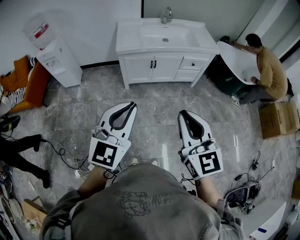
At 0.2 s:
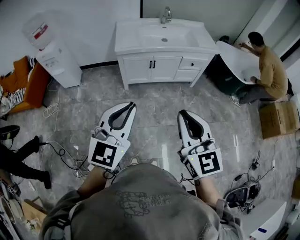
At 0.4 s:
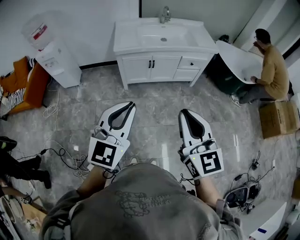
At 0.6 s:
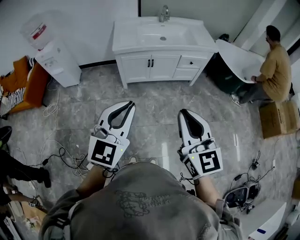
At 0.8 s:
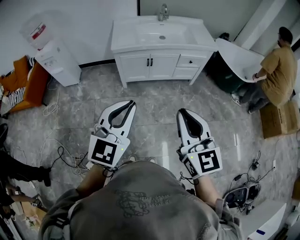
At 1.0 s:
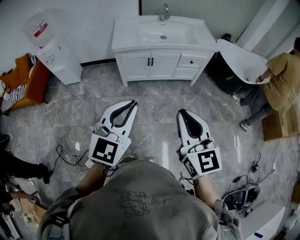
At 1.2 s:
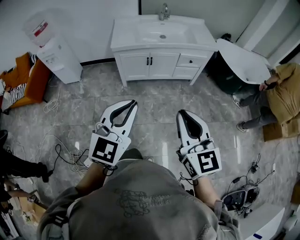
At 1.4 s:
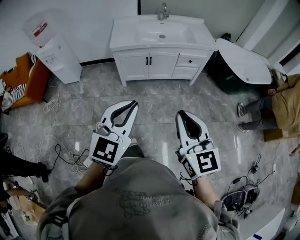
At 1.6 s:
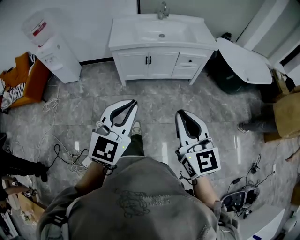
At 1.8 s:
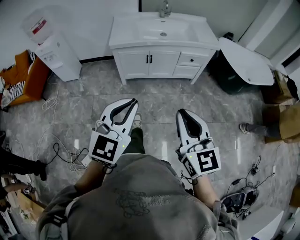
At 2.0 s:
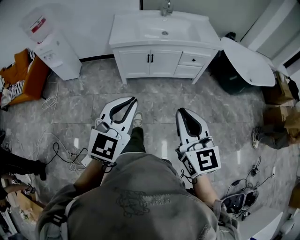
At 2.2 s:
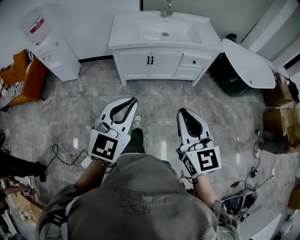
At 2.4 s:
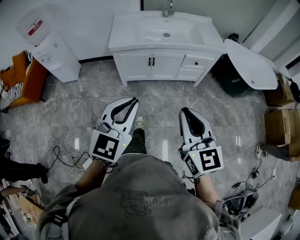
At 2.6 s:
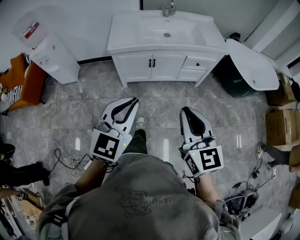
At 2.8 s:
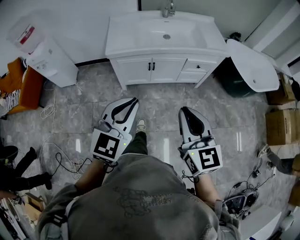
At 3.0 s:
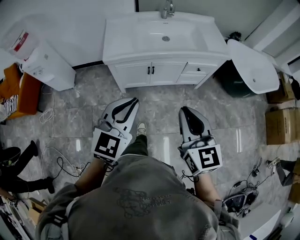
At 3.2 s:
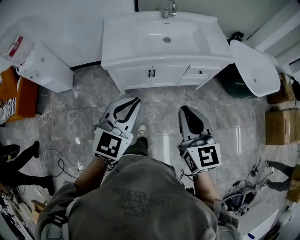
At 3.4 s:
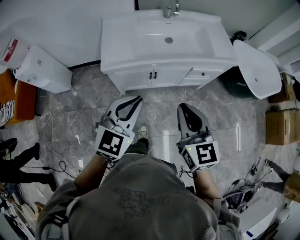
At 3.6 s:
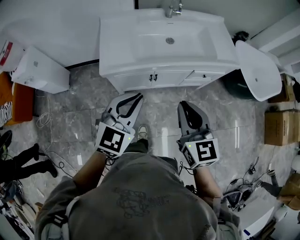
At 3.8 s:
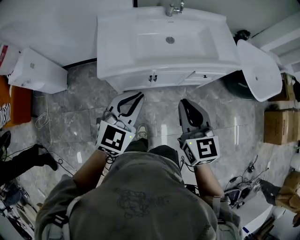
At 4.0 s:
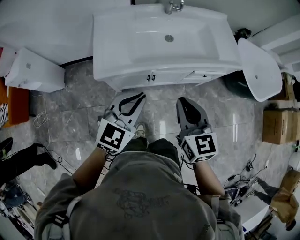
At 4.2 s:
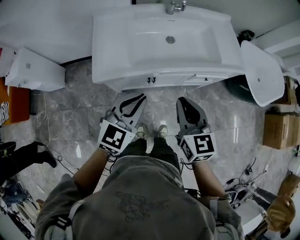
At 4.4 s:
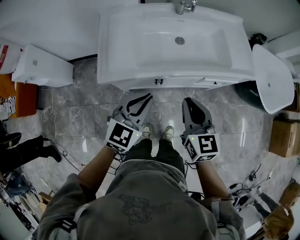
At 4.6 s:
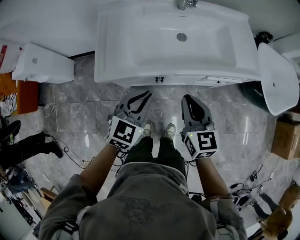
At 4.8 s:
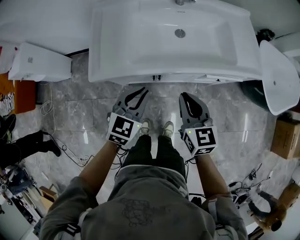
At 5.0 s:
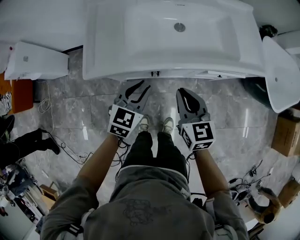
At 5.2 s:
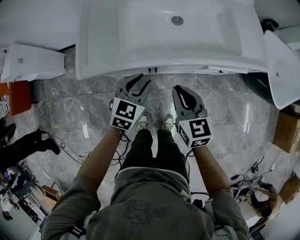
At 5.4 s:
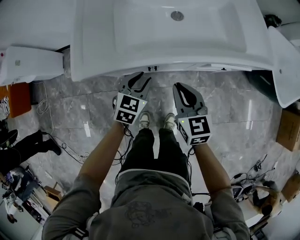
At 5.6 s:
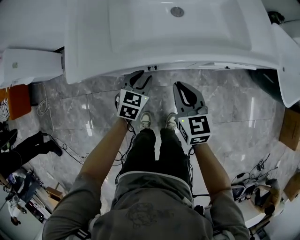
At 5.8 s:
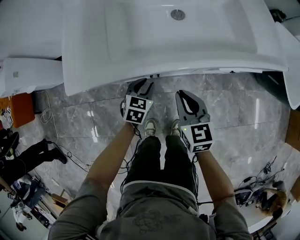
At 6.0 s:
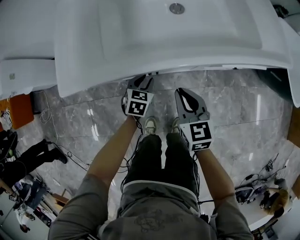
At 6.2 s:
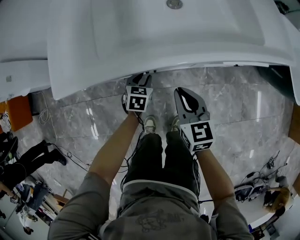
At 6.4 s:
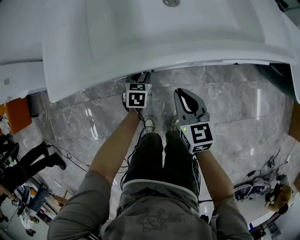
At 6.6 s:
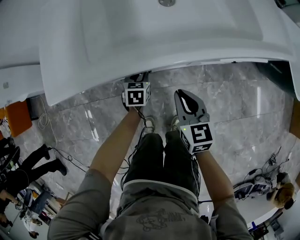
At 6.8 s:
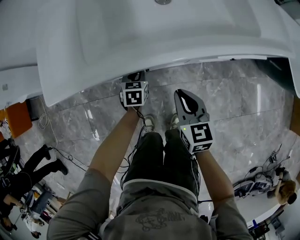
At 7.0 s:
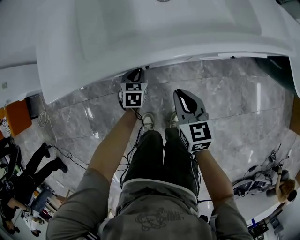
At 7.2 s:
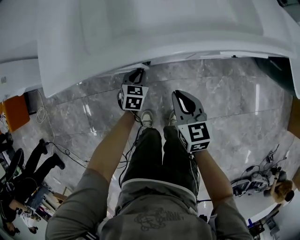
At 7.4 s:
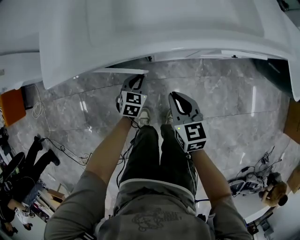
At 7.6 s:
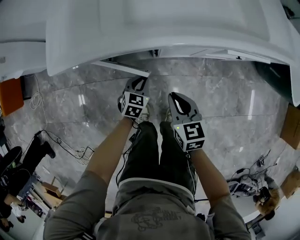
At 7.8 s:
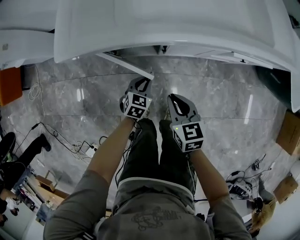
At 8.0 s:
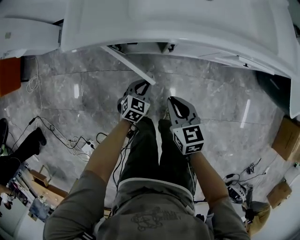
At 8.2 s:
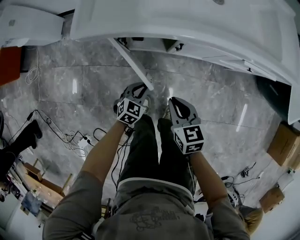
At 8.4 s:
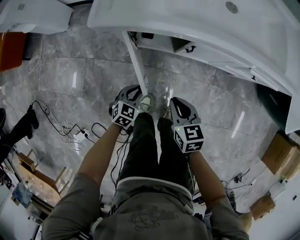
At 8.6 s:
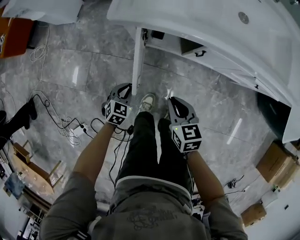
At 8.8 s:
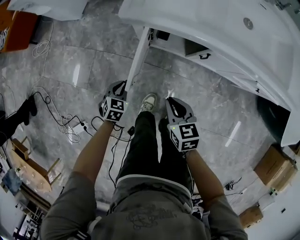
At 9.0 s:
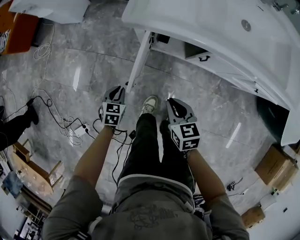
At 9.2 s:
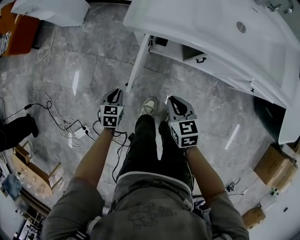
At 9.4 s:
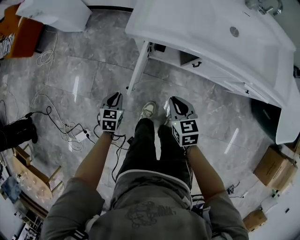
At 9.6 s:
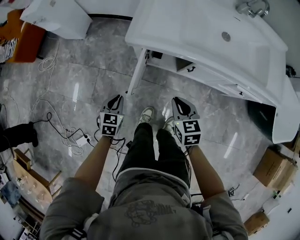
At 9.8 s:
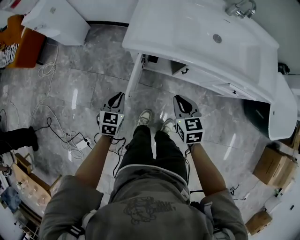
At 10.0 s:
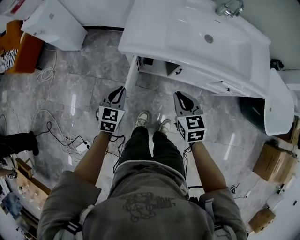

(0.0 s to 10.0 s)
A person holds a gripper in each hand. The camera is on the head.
0.0 s - 1.4 s: Both grippers move to the right, about 10 cm.
1.4 s - 2.8 s: The two grippers go roughly 20 cm forward.
2.8 s - 4.2 s: The two grippers go approximately 35 cm forward.
4.2 s - 5.8 s: Both grippers travel together downward, roughly 35 cm. The left gripper rotates roughly 30 degrees, and opens up.
5.8 s - 7.2 s: Both grippers travel together downward, about 10 cm.
7.2 s - 8.6 s: The right gripper moves to the left and backward, some 20 cm, and changes its angle by roughly 20 degrees, while the left gripper heads to the left and backward, covering about 30 cm.
8.6 s - 10.0 s: The two grippers go some 25 cm upward.

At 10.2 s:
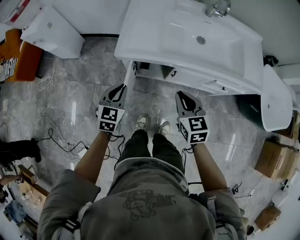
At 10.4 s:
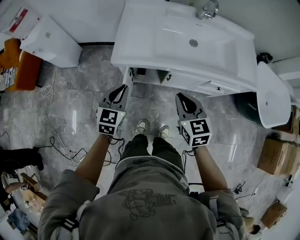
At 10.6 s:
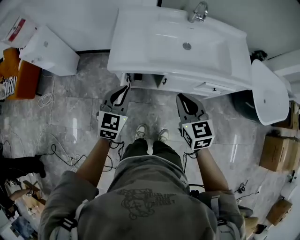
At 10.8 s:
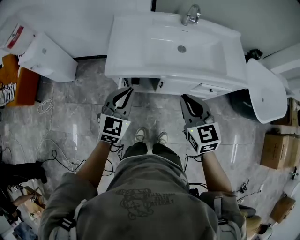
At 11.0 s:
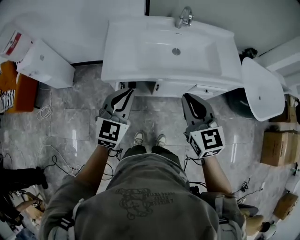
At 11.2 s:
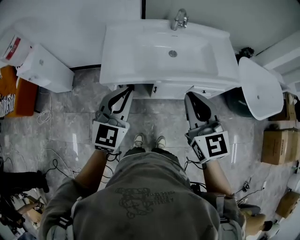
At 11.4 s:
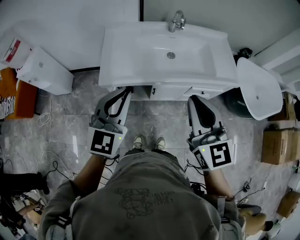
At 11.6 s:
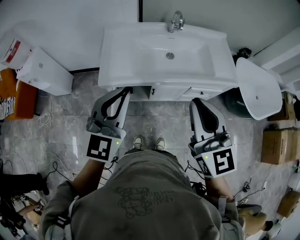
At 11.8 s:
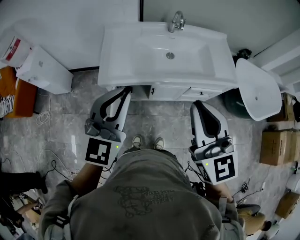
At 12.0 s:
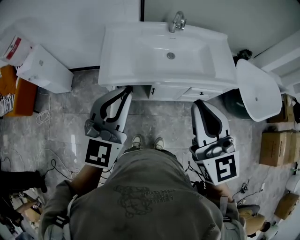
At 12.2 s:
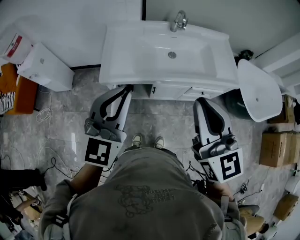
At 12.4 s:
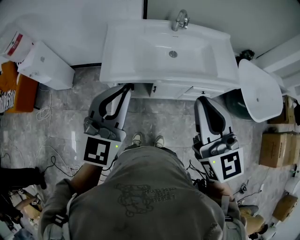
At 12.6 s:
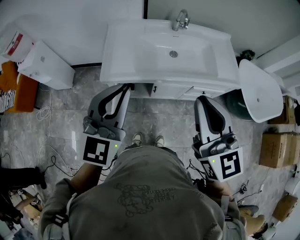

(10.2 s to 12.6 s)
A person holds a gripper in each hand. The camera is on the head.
10.2 s - 11.4 s: The left gripper shifts about 30 cm upward and to the right, and turns by about 30 degrees, while the right gripper moves upward, approximately 25 cm, and rotates some 30 degrees.
11.4 s - 12.6 s: The left gripper is displaced upward by roughly 5 cm. The right gripper moves roughly 5 cm.

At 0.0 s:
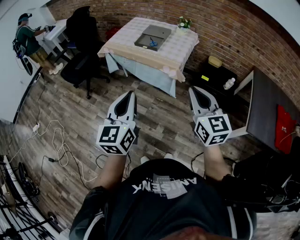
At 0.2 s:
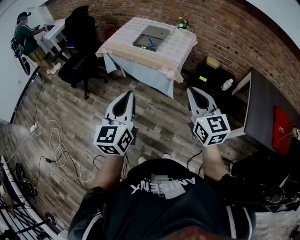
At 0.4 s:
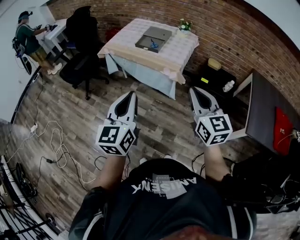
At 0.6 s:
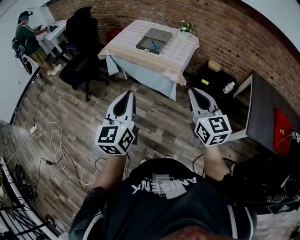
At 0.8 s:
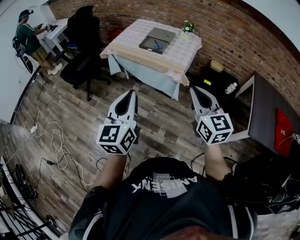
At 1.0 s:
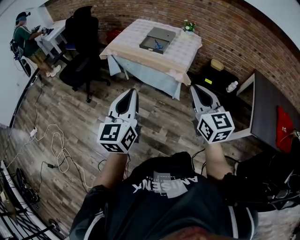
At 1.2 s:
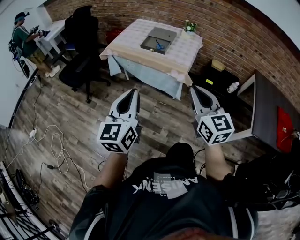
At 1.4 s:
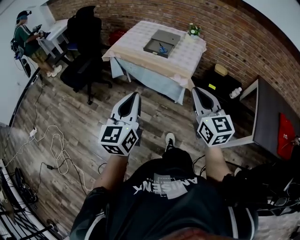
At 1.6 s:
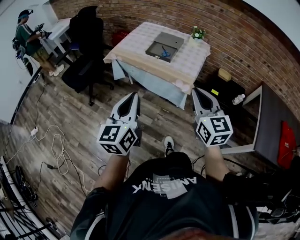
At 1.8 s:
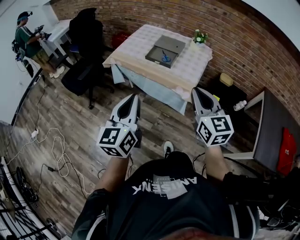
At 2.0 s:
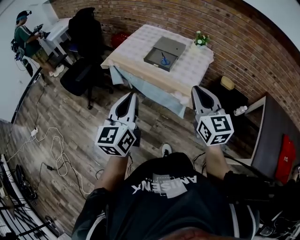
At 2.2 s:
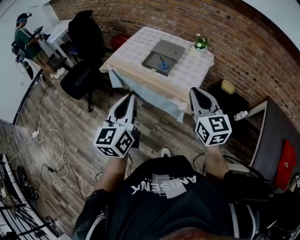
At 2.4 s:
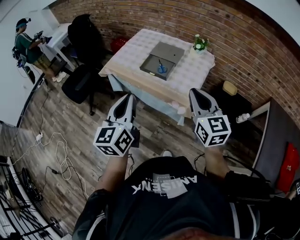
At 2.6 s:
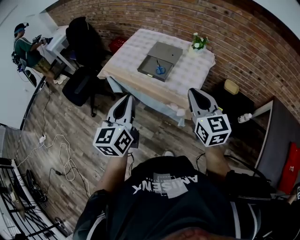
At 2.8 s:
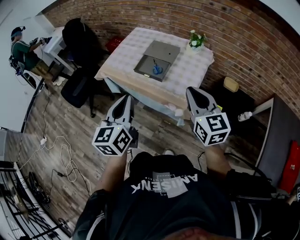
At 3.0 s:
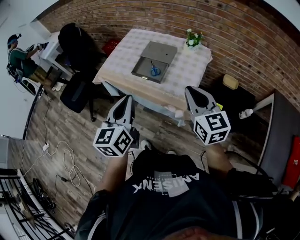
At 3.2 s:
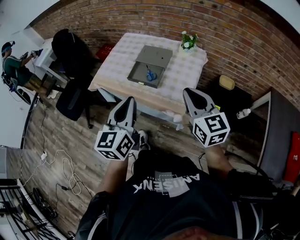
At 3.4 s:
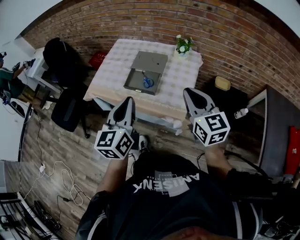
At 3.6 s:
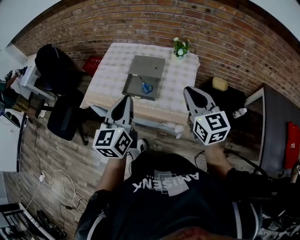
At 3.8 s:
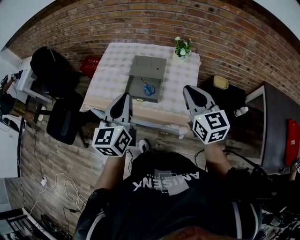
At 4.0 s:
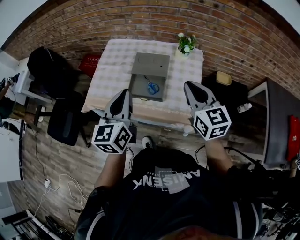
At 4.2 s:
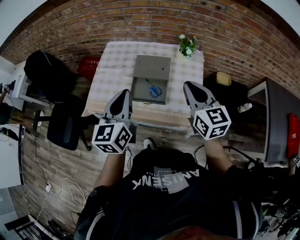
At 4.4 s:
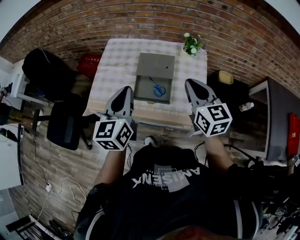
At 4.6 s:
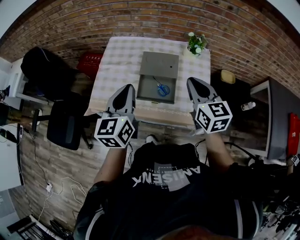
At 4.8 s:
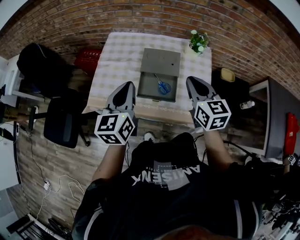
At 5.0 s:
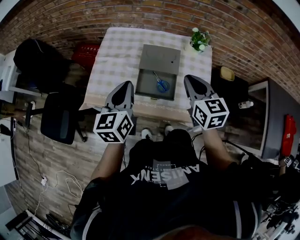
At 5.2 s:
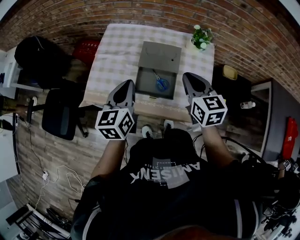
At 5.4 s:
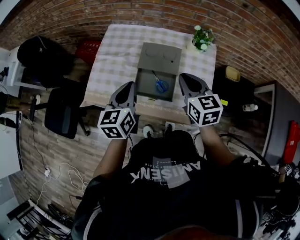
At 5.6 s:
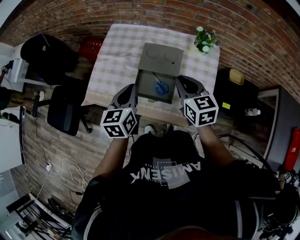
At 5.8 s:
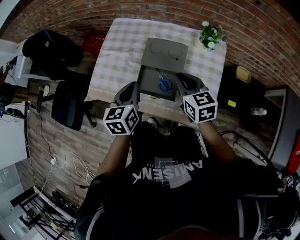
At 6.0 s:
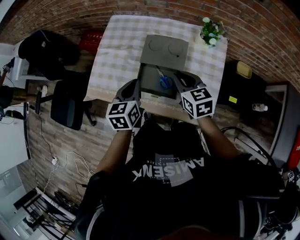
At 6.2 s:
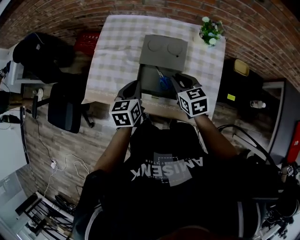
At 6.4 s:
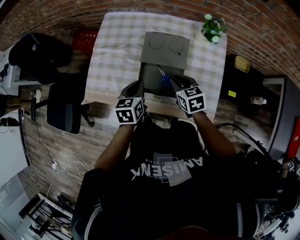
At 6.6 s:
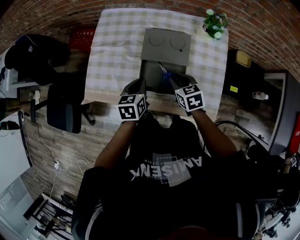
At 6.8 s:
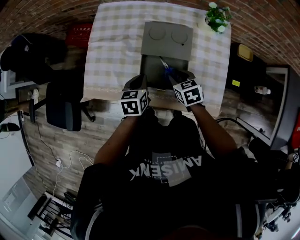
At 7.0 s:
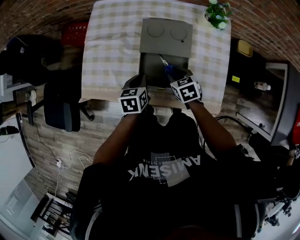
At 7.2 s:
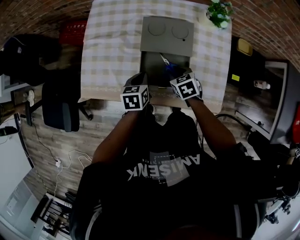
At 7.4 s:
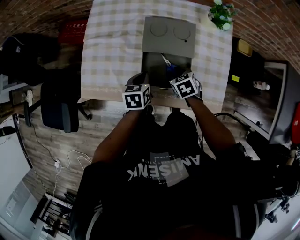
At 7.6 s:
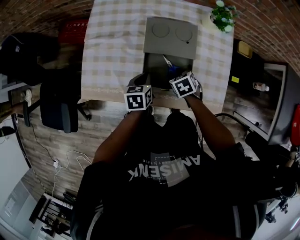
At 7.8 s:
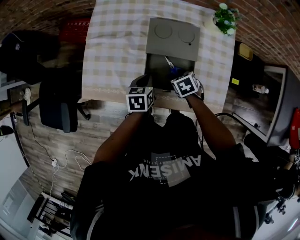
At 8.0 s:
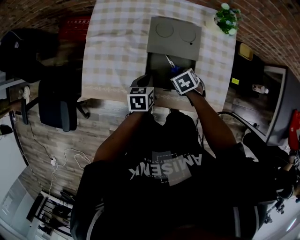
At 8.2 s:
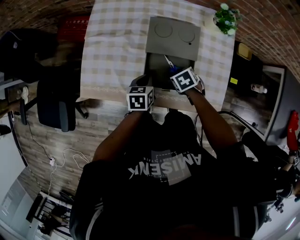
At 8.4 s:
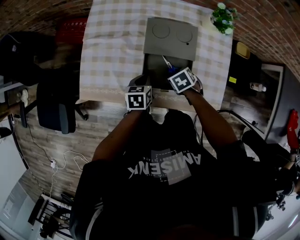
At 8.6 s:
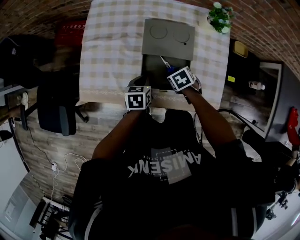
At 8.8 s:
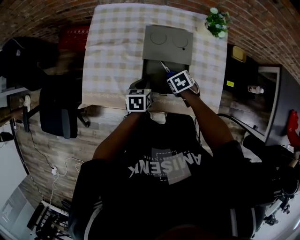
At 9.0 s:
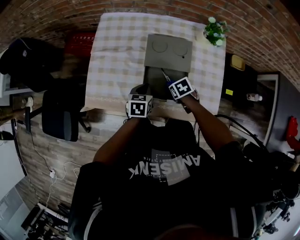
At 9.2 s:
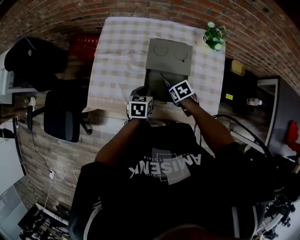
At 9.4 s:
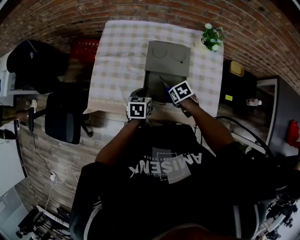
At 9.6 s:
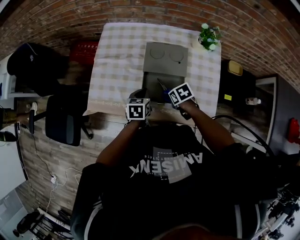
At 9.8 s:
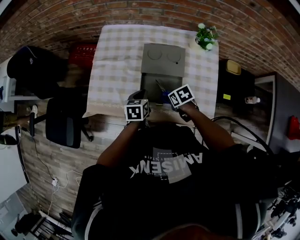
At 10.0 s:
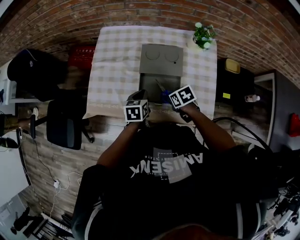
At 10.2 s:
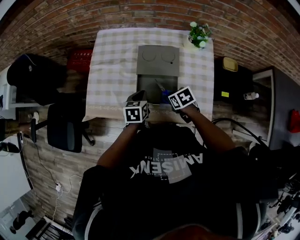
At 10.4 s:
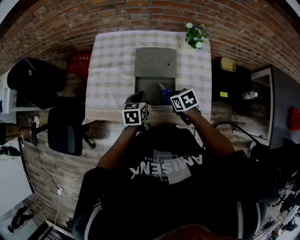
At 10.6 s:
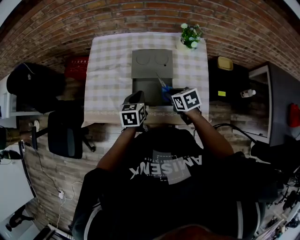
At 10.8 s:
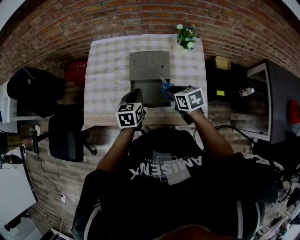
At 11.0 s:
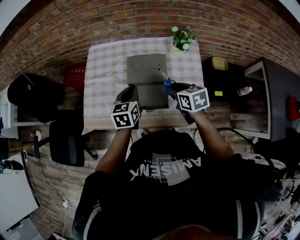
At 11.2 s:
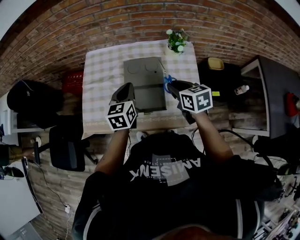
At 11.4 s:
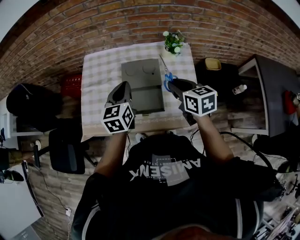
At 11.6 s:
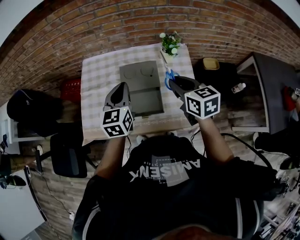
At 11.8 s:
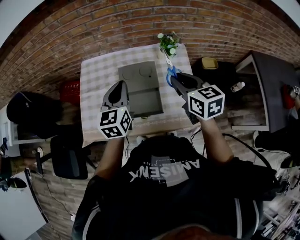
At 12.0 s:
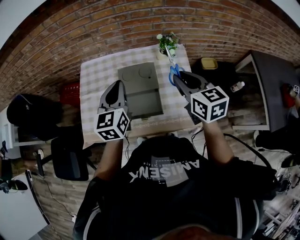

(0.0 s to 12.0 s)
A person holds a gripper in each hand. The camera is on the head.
0.0 s - 1.6 s: Both grippers move forward and to the left, about 15 cm.
1.6 s - 3.0 s: The grippers both shift forward and to the right by approximately 30 cm.
3.0 s - 4.4 s: The two grippers go approximately 30 cm forward and to the left.
4.4 s - 6.0 s: The two grippers go some 20 cm downward and forward. The right gripper turns by about 20 degrees. Meanwhile the left gripper changes its angle by approximately 20 degrees.
6.0 s - 7.6 s: Both grippers move downward, roughly 20 cm. The right gripper points its fingers approximately 40 degrees further downward, and opens up. The left gripper changes its angle by about 20 degrees.
7.6 s - 9.0 s: There are only small adjustments of the grippers.
9.0 s - 10.4 s: The left gripper goes about 5 cm upward. Meanwhile the right gripper heads upward, covering roughly 10 cm.
10.4 s - 12.0 s: The grippers both shift upward by approximately 25 cm. The right gripper tips its fingers upward by approximately 40 degrees. Meanwhile the left gripper tilts its fingers some 30 degrees upward.
